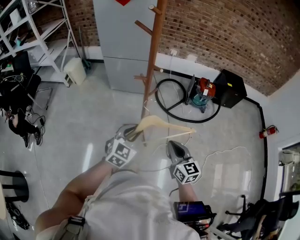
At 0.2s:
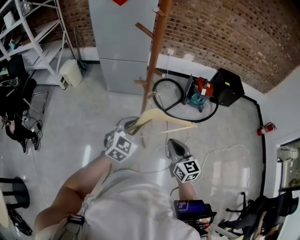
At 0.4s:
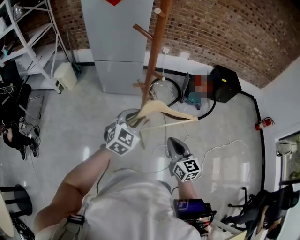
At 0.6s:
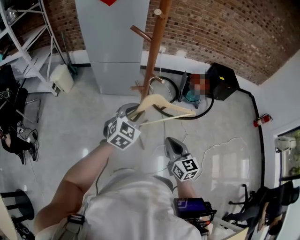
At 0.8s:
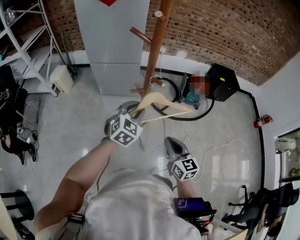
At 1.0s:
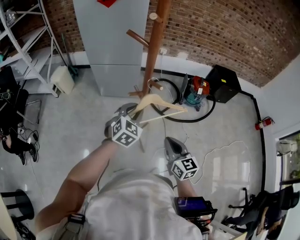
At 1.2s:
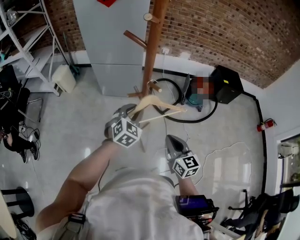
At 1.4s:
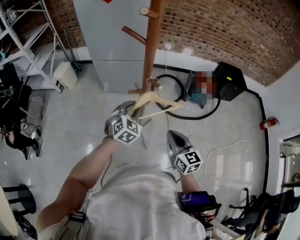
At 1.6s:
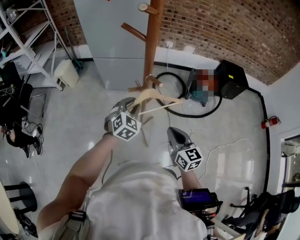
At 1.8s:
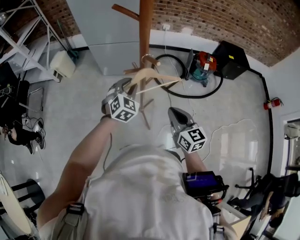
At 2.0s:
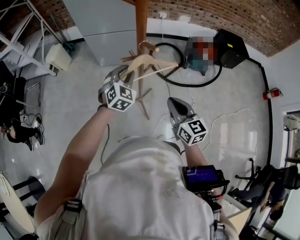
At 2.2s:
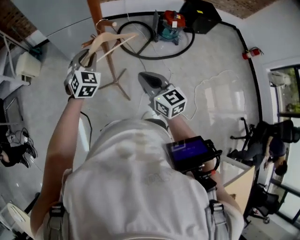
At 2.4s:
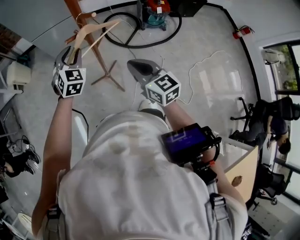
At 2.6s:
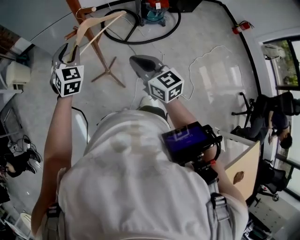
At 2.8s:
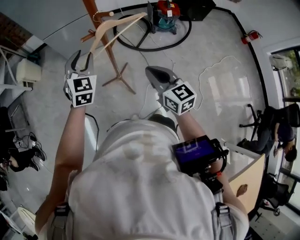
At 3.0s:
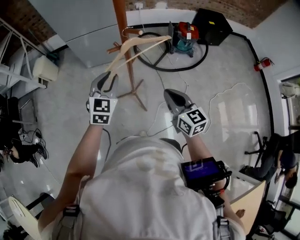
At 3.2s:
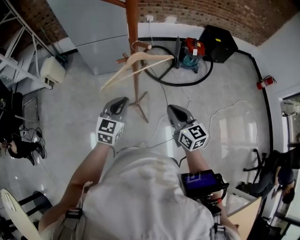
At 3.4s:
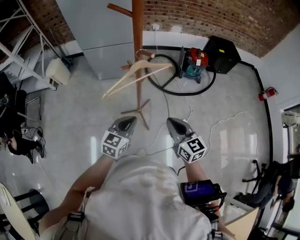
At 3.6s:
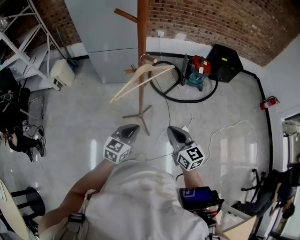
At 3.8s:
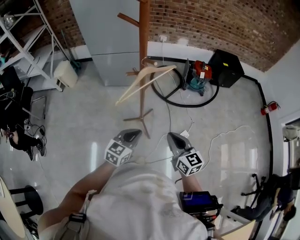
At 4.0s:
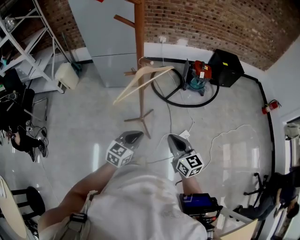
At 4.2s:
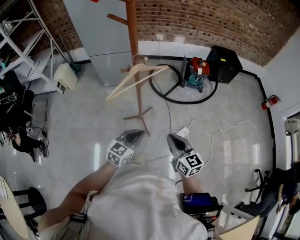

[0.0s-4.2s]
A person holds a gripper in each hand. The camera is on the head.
0.0s to 1.4s: The left gripper travels forward by roughly 20 cm; the right gripper goes roughly 15 cm forward.
1.4s to 2.8s: The left gripper changes place by some 5 cm.
2.8s to 4.2s: The right gripper moves backward, approximately 10 cm. Meanwhile the left gripper is displaced backward and to the right by roughly 25 cm, turns by approximately 40 degrees, and closes.

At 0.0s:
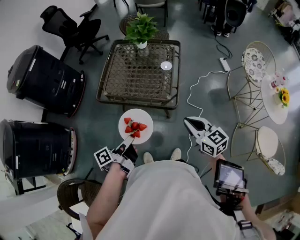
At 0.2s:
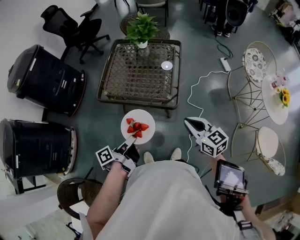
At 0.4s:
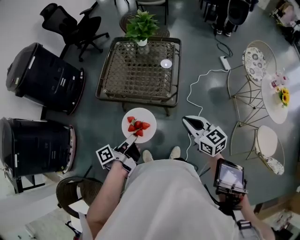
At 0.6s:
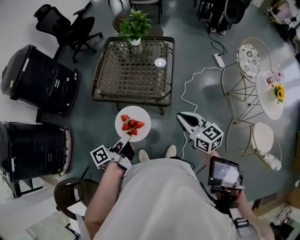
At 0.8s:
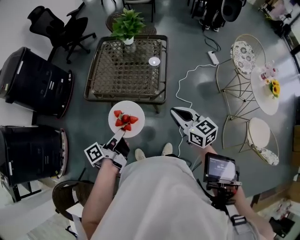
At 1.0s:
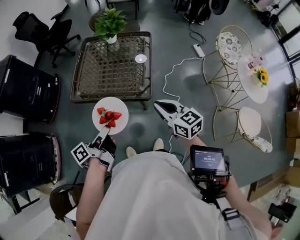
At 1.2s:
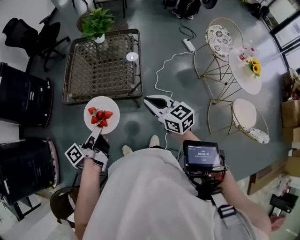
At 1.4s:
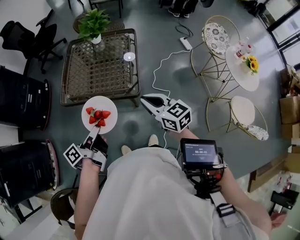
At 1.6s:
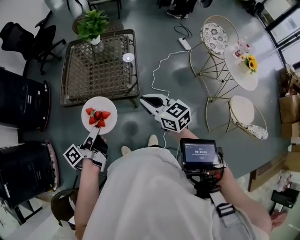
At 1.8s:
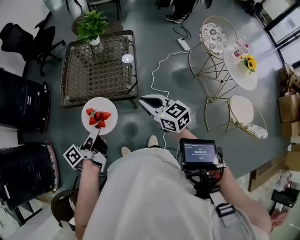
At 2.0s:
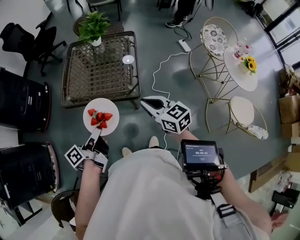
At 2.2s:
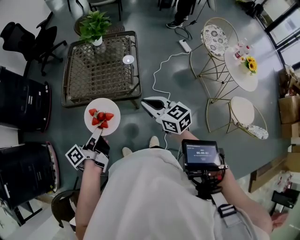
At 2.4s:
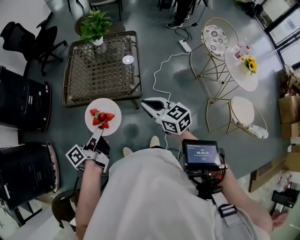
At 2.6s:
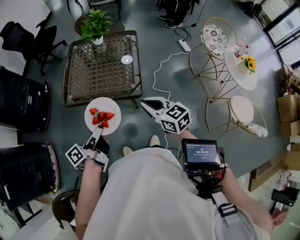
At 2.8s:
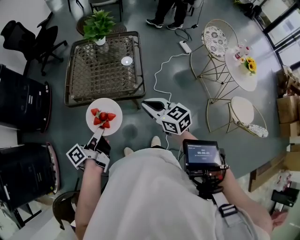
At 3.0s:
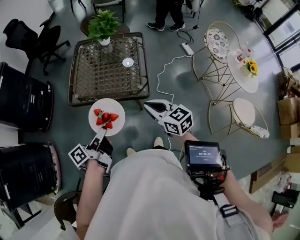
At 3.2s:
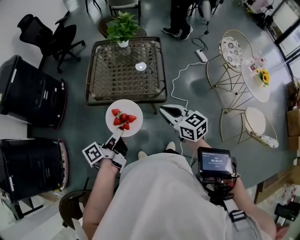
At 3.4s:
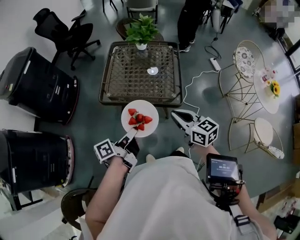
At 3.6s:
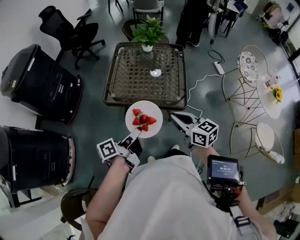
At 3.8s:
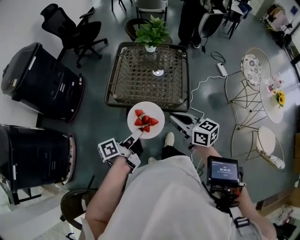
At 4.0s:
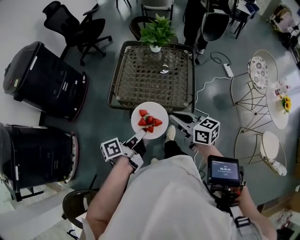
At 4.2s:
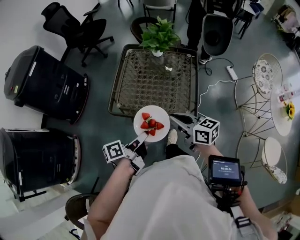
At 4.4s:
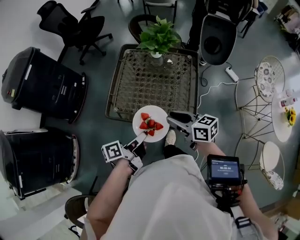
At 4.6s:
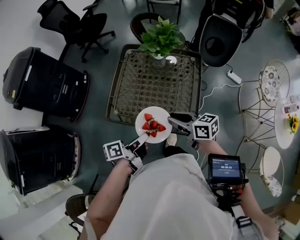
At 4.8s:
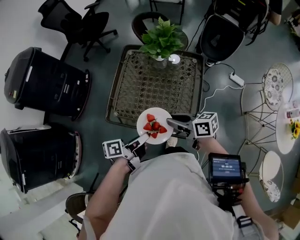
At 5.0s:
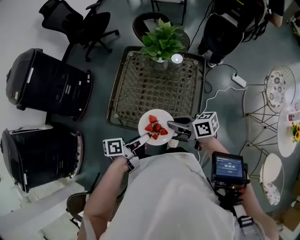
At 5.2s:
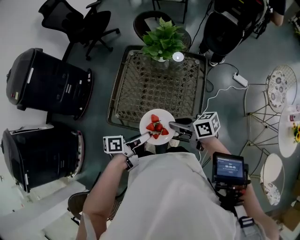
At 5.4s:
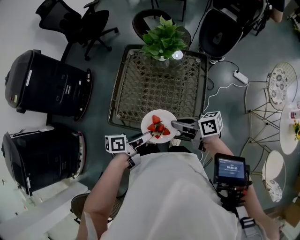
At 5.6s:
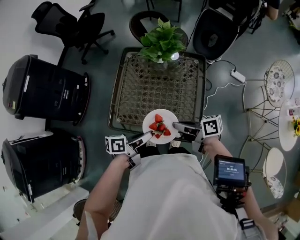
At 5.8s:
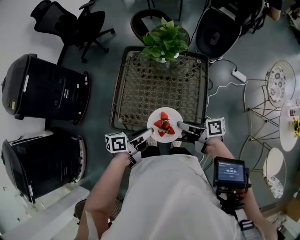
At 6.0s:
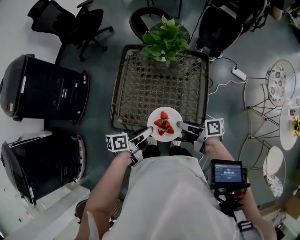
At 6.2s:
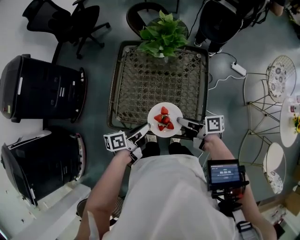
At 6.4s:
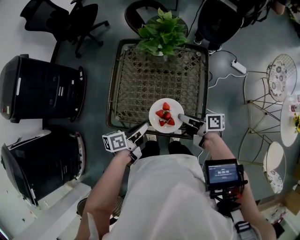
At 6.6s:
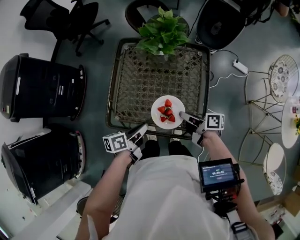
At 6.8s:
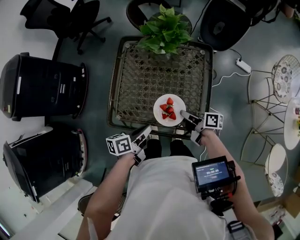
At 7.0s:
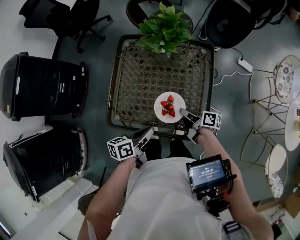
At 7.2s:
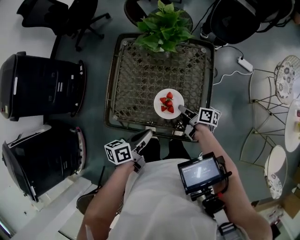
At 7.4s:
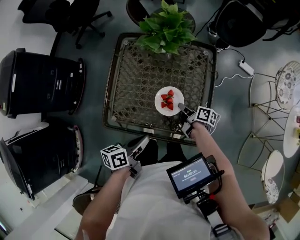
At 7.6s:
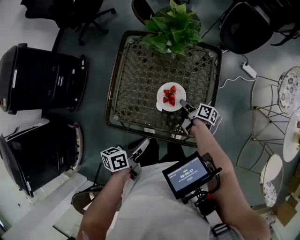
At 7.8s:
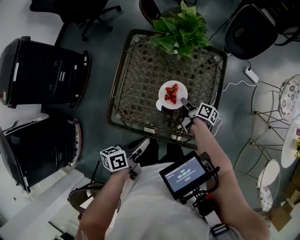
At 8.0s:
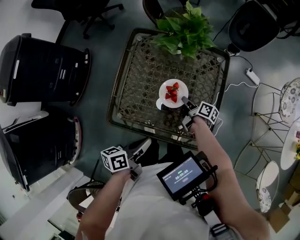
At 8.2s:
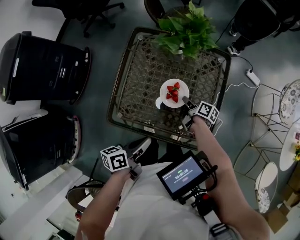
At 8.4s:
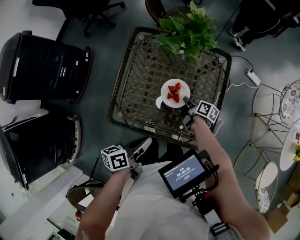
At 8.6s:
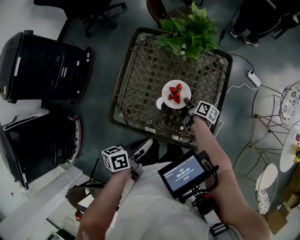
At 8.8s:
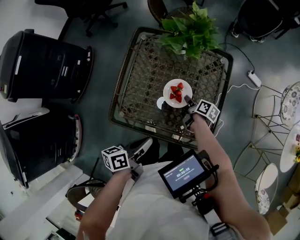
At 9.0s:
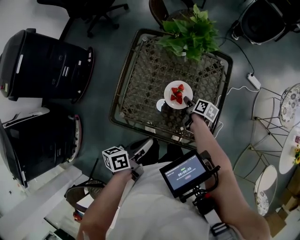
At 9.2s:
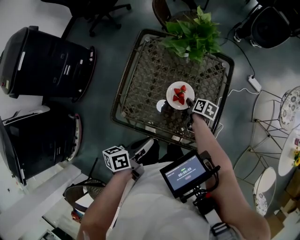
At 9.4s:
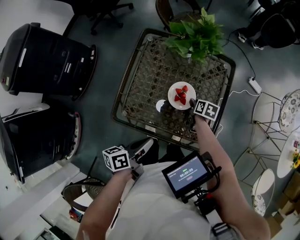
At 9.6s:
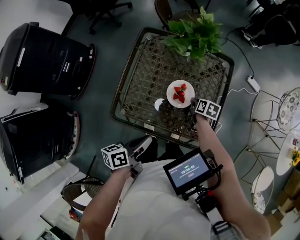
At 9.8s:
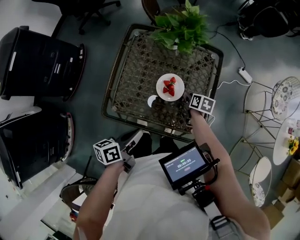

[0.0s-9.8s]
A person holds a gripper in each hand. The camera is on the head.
2.8s to 4.2s: The right gripper moves about 20 cm, and turns by approximately 20 degrees.
4.2s to 5.6s: The right gripper ends up roughly 15 cm from where it was, rotates some 40 degrees, and opens and closes again.
5.6s to 7.0s: The right gripper shifts some 15 cm downward, and turns by some 30 degrees.
7.0s to 8.4s: The right gripper moves some 15 cm.
8.4s to 9.8s: The right gripper moves some 5 cm, rotates about 30 degrees, and opens its fingers.

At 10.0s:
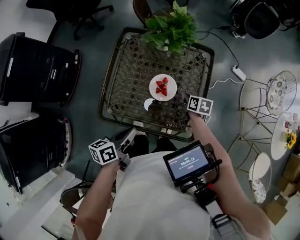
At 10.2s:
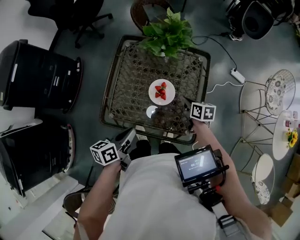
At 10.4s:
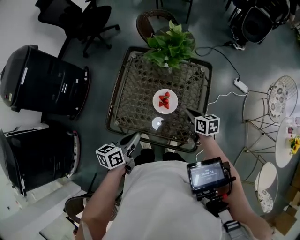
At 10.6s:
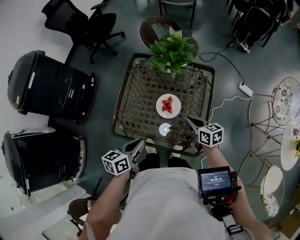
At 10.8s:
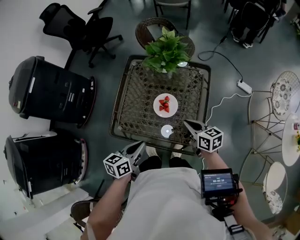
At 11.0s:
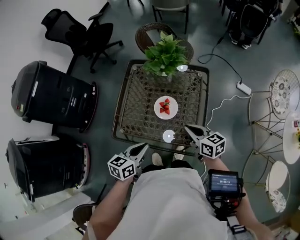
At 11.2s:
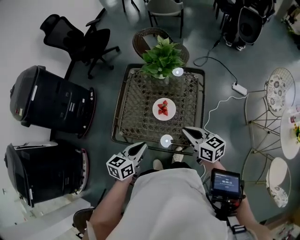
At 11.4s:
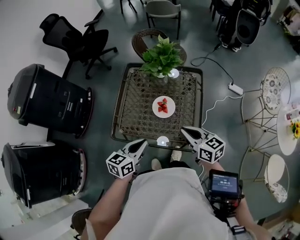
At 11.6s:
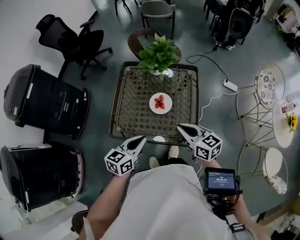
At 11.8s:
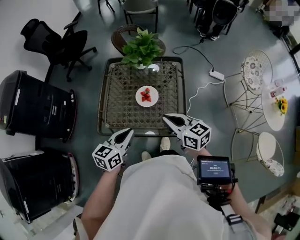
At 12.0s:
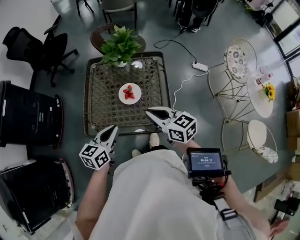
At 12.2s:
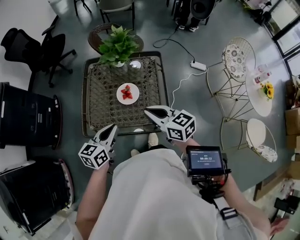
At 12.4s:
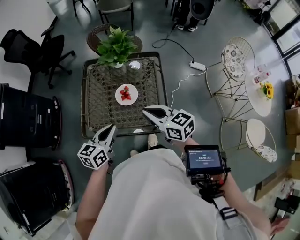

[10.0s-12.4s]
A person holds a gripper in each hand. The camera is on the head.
10.0s to 11.2s: The right gripper goes roughly 20 cm upward, and angles its fingers upward, by roughly 30 degrees.
11.2s to 12.4s: The right gripper is displaced upward by approximately 5 cm.

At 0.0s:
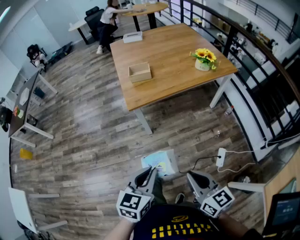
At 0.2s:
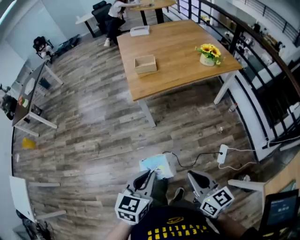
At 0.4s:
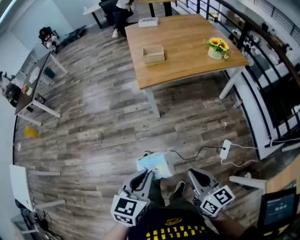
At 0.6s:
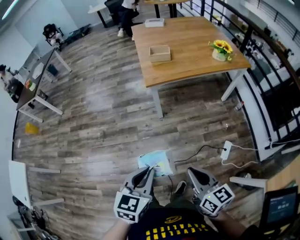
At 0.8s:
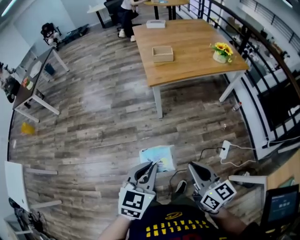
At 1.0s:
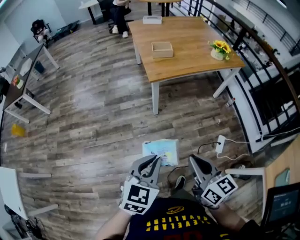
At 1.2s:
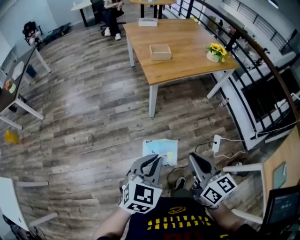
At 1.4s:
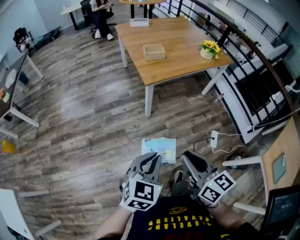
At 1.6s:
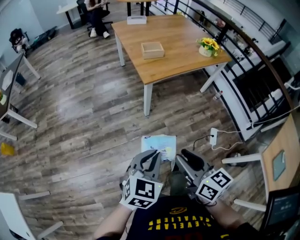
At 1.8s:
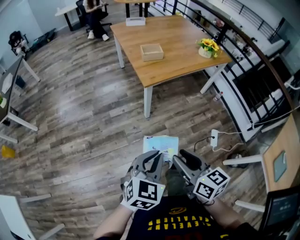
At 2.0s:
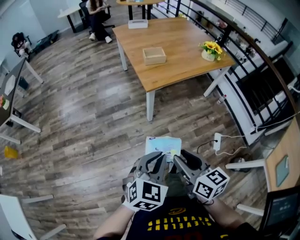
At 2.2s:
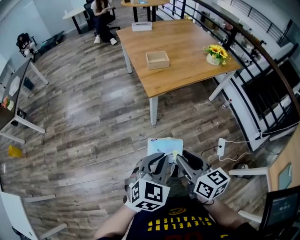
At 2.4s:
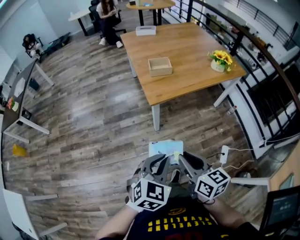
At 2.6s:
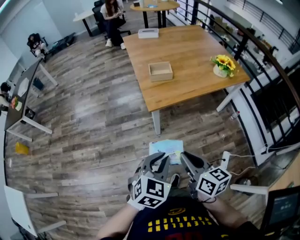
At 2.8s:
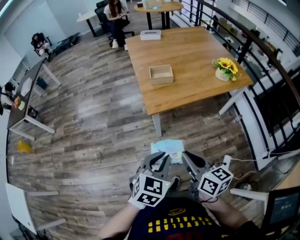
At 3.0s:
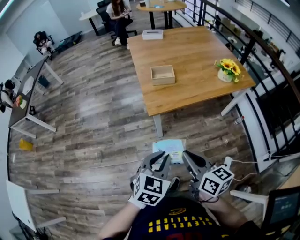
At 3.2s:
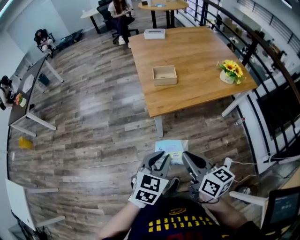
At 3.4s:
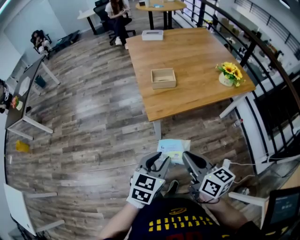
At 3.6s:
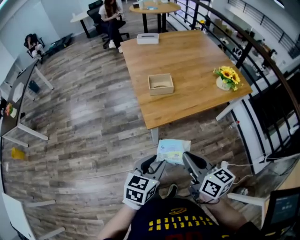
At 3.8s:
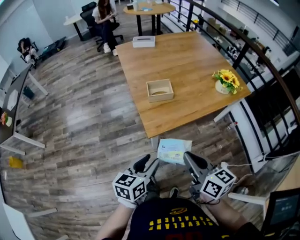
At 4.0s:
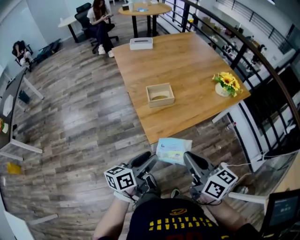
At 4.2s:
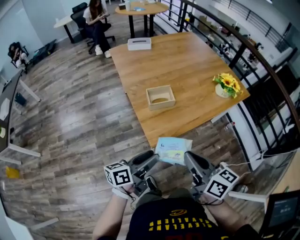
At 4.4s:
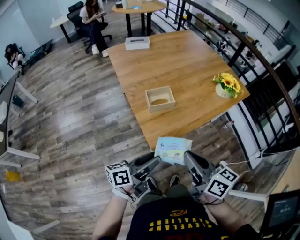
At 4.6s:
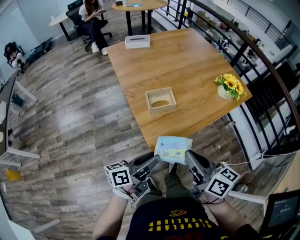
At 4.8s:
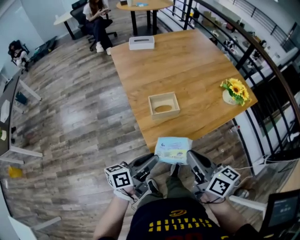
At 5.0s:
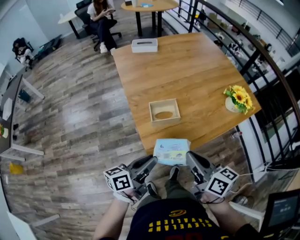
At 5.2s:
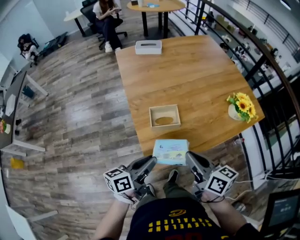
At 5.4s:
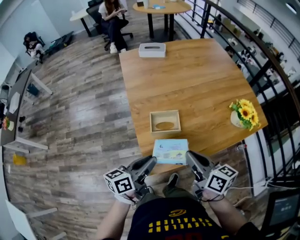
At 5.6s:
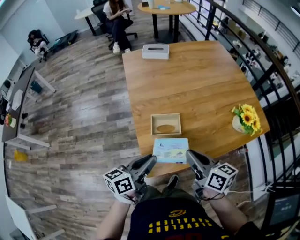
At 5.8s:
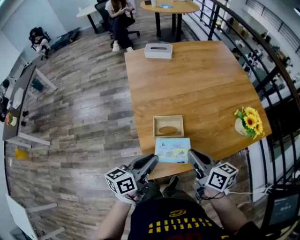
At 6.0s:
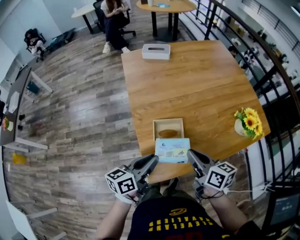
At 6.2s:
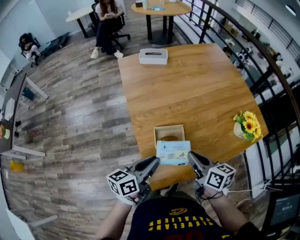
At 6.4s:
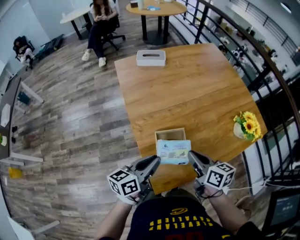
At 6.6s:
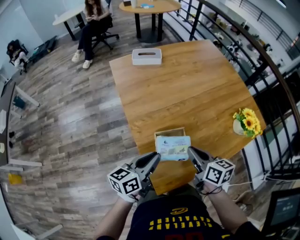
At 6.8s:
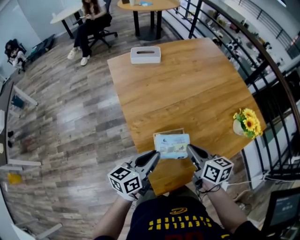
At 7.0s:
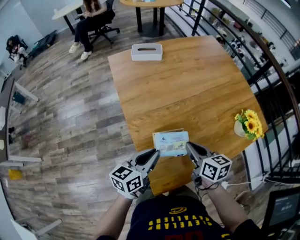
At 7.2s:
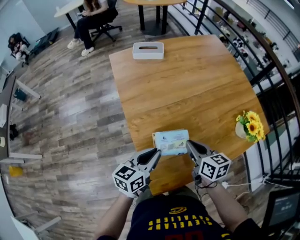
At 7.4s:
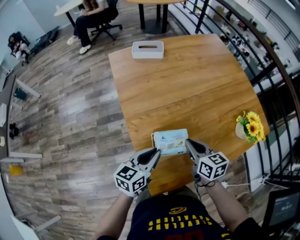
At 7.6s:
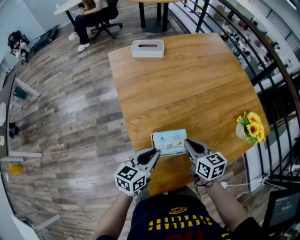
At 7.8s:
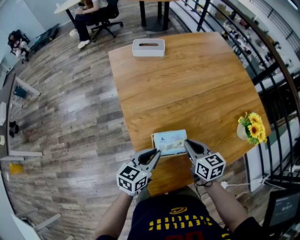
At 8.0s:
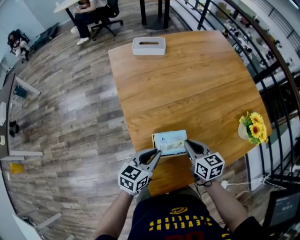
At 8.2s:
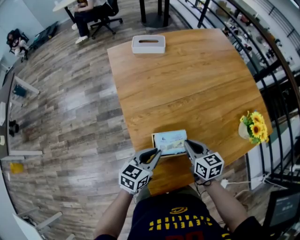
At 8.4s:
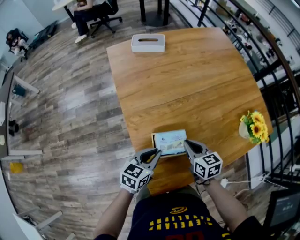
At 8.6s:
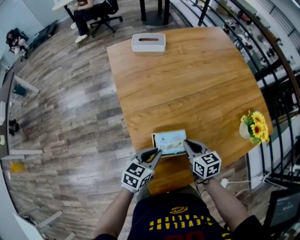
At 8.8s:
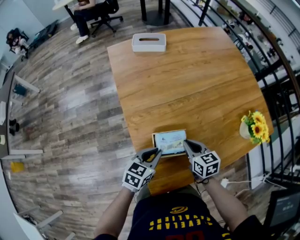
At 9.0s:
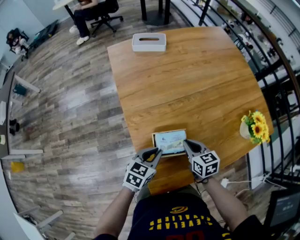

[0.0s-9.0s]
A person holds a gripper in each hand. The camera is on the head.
0.0s to 1.6s: Both grippers move to the left, approximately 20 cm. The right gripper opens its fingers. Meanwhile the left gripper rotates some 20 degrees.
1.6s to 3.0s: Both grippers travel together forward and to the right, approximately 25 cm. The right gripper closes its fingers.
3.0s to 4.4s: Both grippers move forward and to the left, some 20 cm. The left gripper angles its fingers upward, by approximately 30 degrees, and opens up.
4.4s to 6.0s: The grippers both shift forward by approximately 20 cm. The left gripper swivels some 20 degrees, and closes.
6.0s to 7.6s: Both grippers move forward and downward, roughly 15 cm.
7.6s to 9.0s: Both grippers travel together downward, roughly 5 cm.
